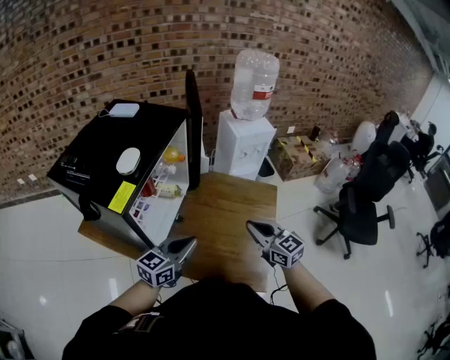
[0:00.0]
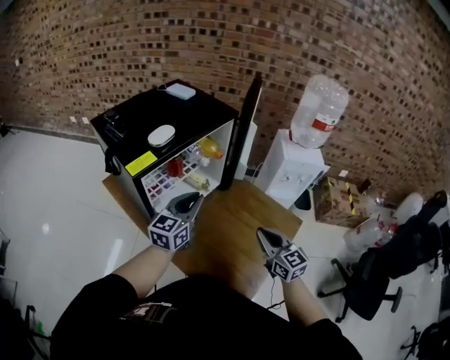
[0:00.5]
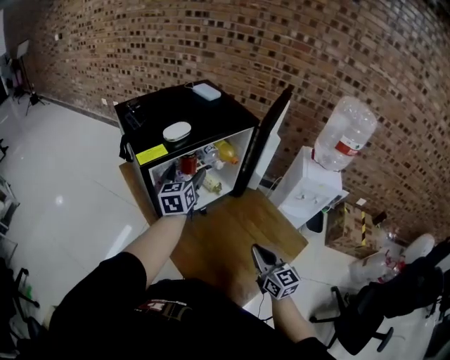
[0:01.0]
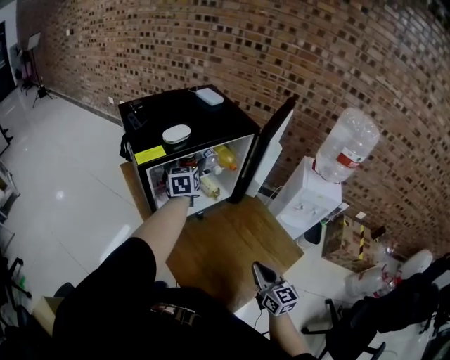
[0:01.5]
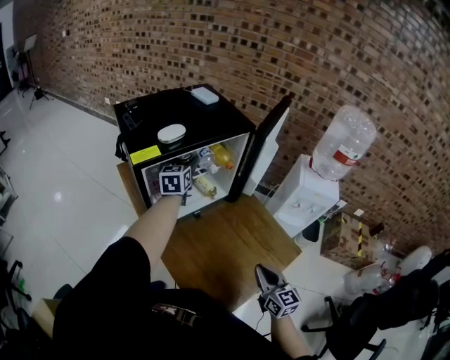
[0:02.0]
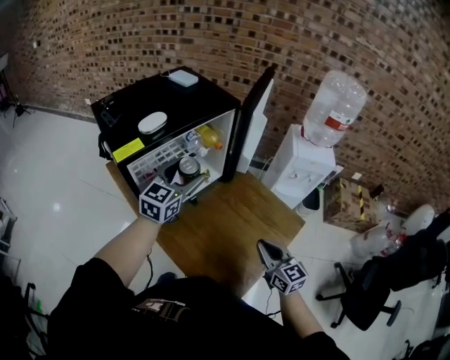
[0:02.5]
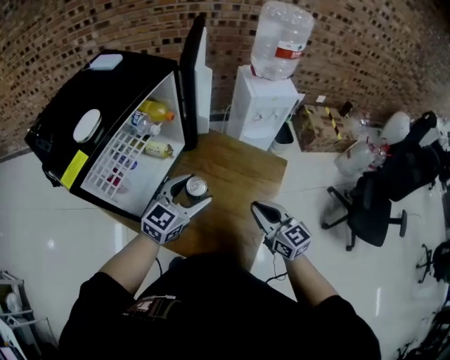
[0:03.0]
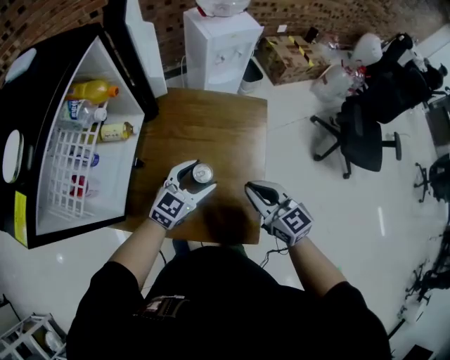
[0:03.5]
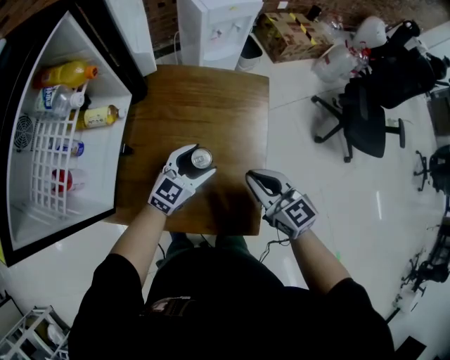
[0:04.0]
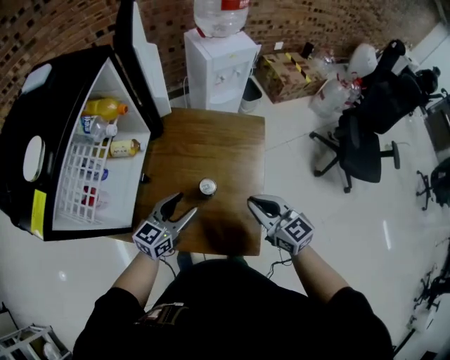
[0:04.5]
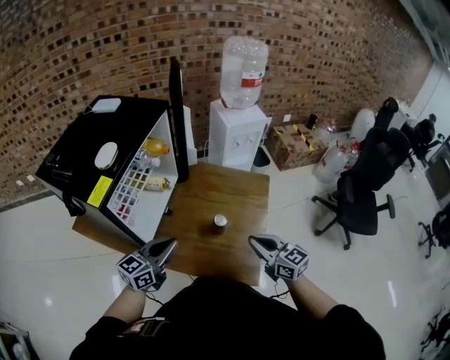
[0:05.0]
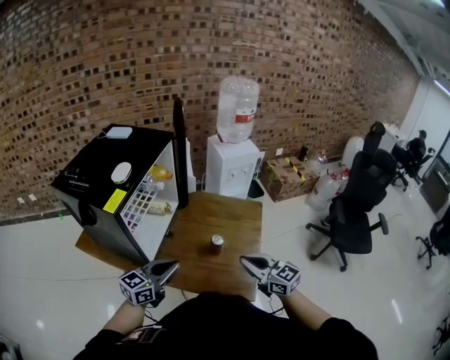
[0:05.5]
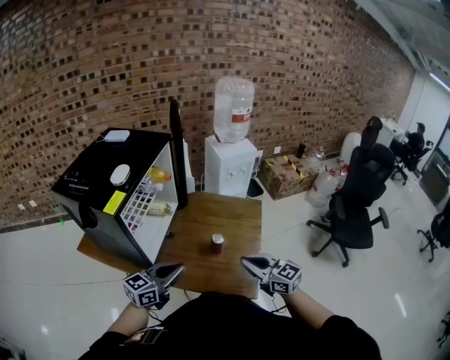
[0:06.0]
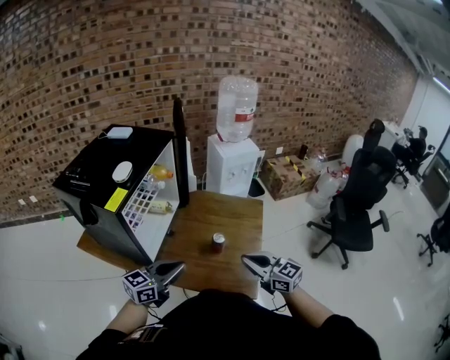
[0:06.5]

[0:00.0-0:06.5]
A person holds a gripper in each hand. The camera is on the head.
0:00.0 to 0:02.0: The right gripper moves some 15 cm; the left gripper ends up some 25 cm from where it was, turns by roughly 70 degrees, and opens its fingers.
0:02.0 to 0:04.5: The right gripper heads downward, covering about 5 cm, and rotates about 20 degrees. The left gripper moves up and down over approximately 35 cm, changing direction 2 times, and changes its angle by roughly 80 degrees.
0:04.5 to 0:06.5: Both grippers travel together upward, backward and to the left, about 20 cm. The left gripper closes up.

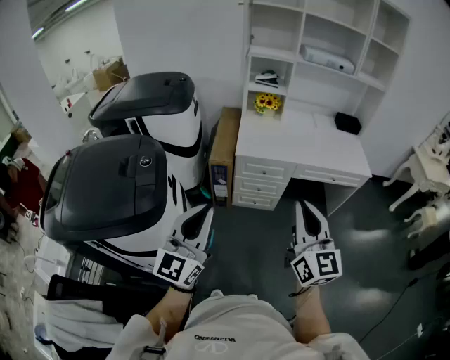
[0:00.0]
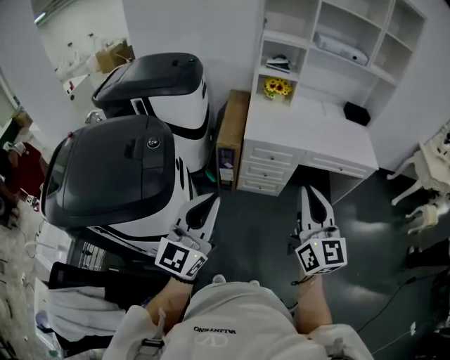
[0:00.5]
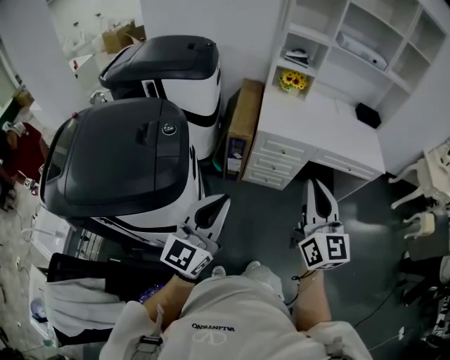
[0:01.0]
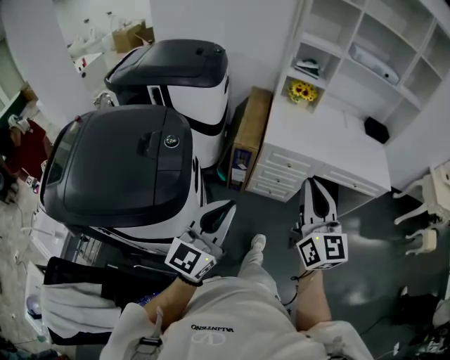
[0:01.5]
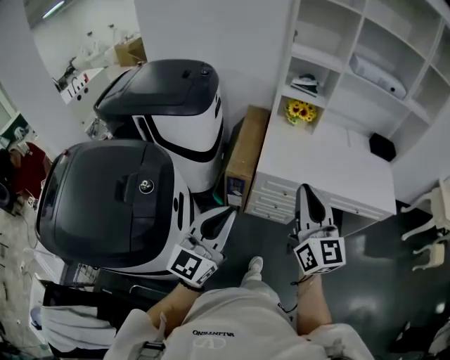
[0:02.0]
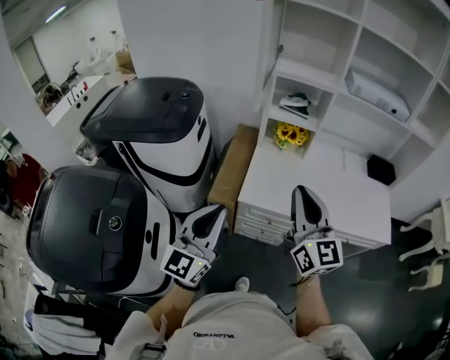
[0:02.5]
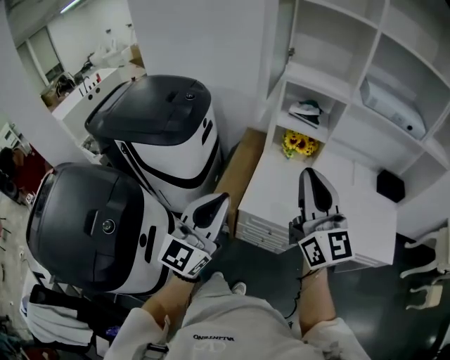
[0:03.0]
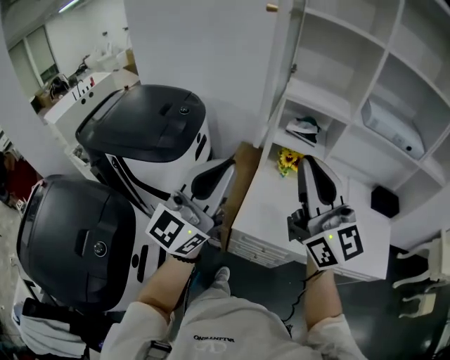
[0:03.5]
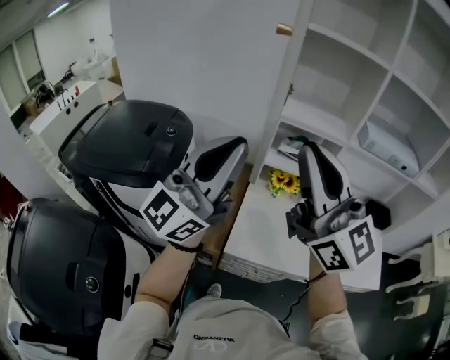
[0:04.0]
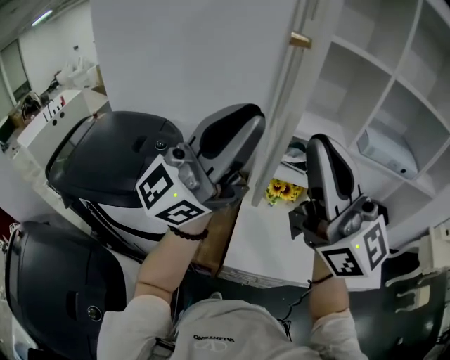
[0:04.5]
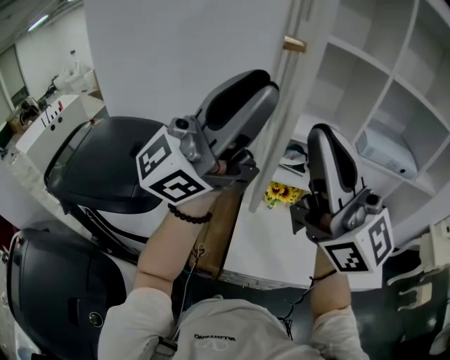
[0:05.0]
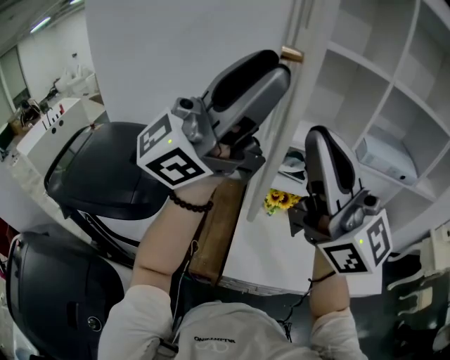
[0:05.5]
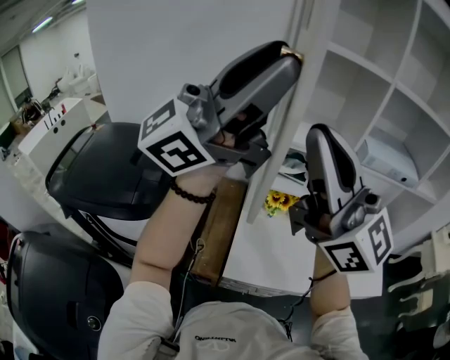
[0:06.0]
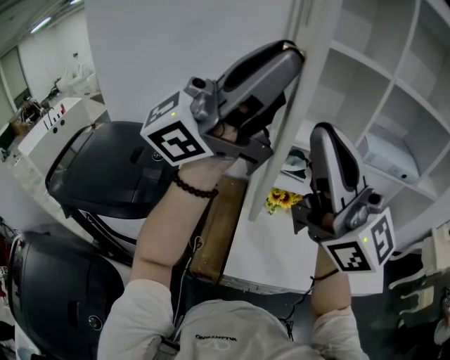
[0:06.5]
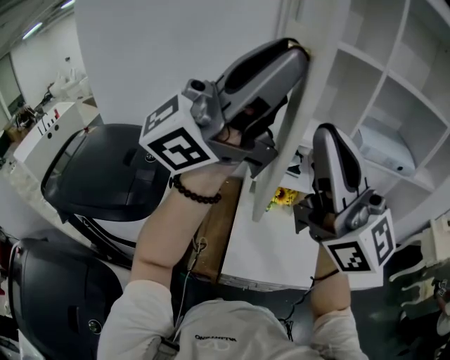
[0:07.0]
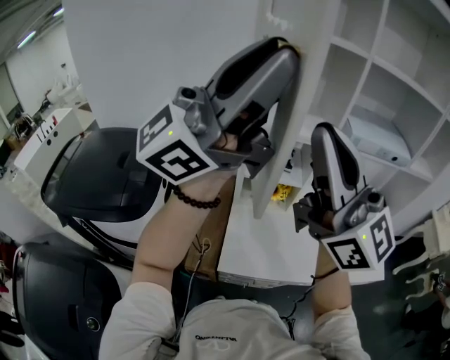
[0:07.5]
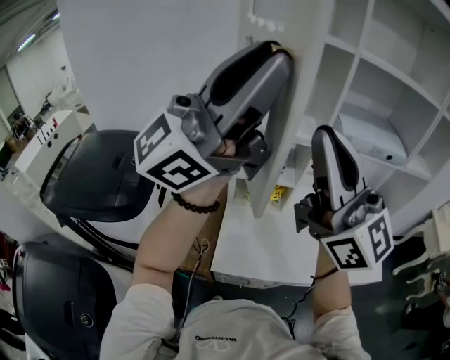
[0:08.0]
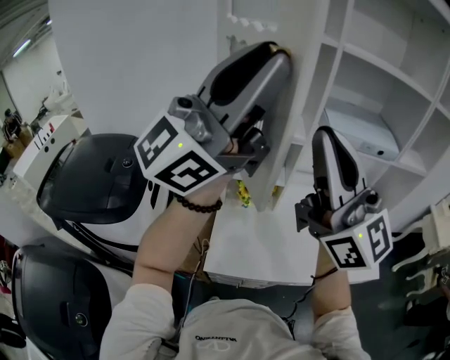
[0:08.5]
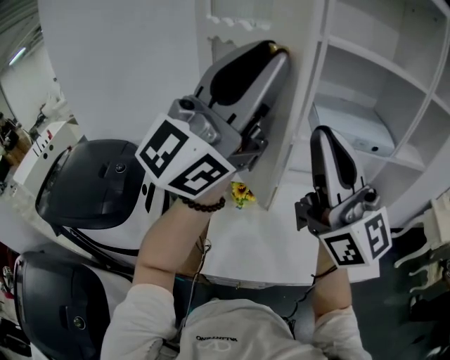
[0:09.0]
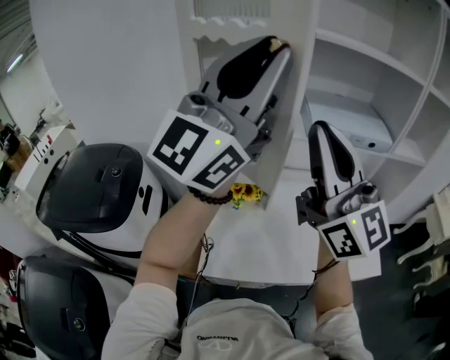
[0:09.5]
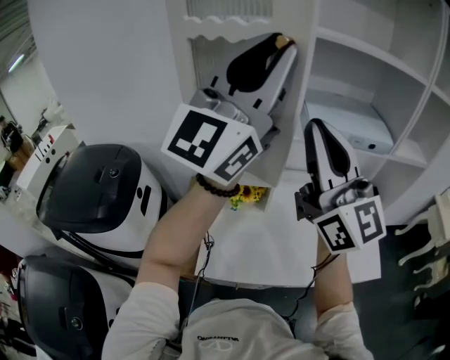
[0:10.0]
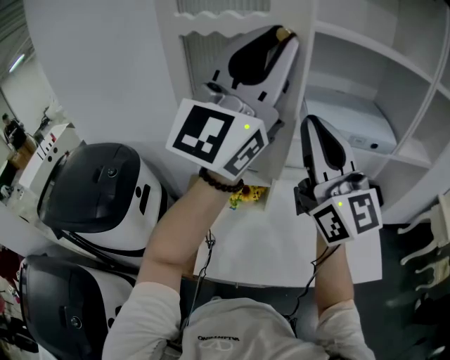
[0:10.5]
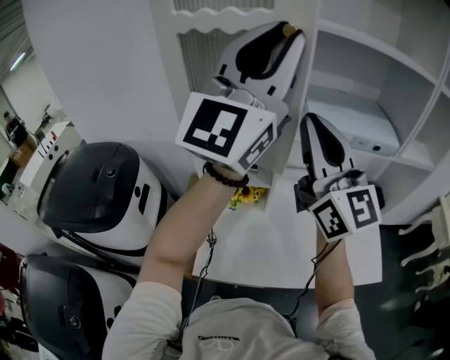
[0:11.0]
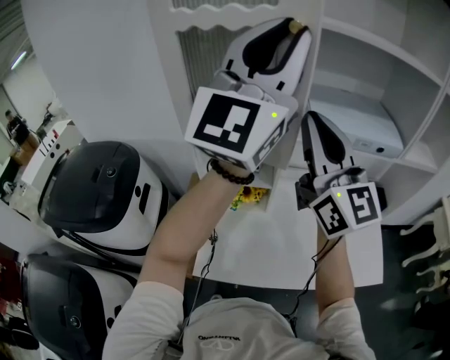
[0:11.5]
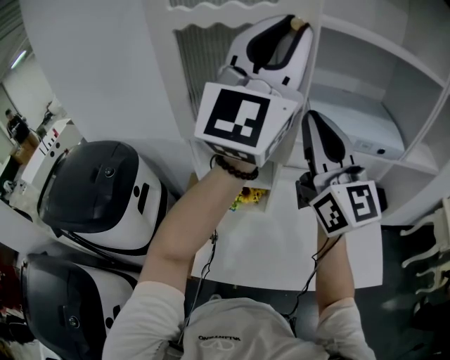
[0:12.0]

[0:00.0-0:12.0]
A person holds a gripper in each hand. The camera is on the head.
0:00.0 to 0:02.0: The grippers both shift forward by roughly 20 cm.
0:02.0 to 0:04.0: Both grippers move forward and upward, about 40 cm. The right gripper turns by about 30 degrees. Meanwhile the left gripper turns by about 30 degrees.
0:04.0 to 0:06.0: The right gripper goes about 5 cm upward; the left gripper is displaced upward by roughly 15 cm, rotates approximately 30 degrees, and opens.
0:06.0 to 0:08.0: The right gripper changes place by roughly 10 cm; the left gripper shifts by about 10 cm.
0:08.0 to 0:10.0: The grippers both shift to the right and forward by about 15 cm. The left gripper swivels some 30 degrees.
0:10.0 to 0:12.0: The two grippers go about 10 cm forward.

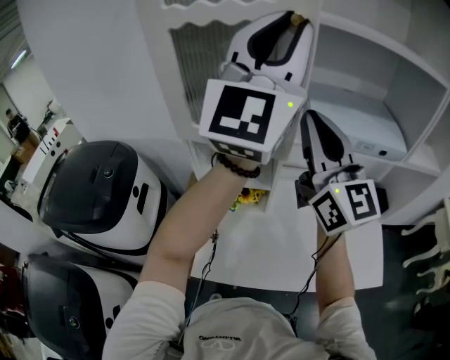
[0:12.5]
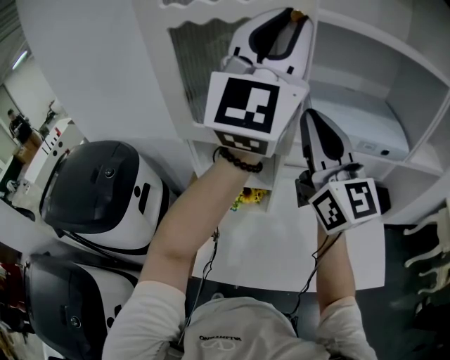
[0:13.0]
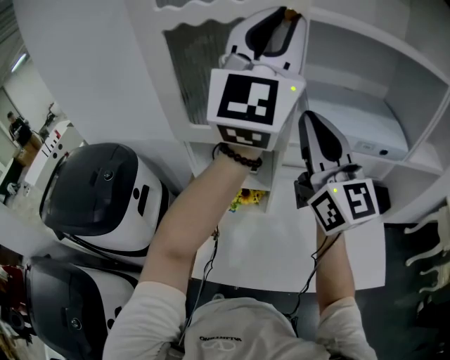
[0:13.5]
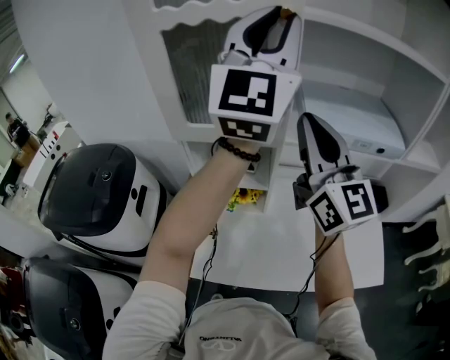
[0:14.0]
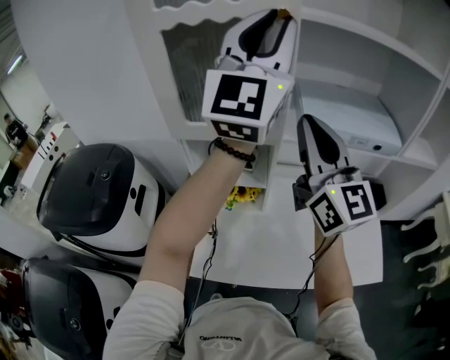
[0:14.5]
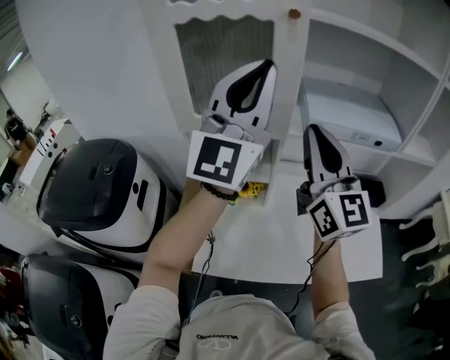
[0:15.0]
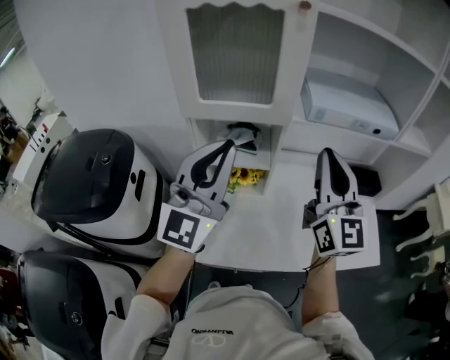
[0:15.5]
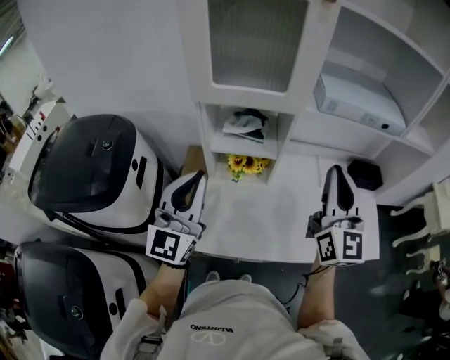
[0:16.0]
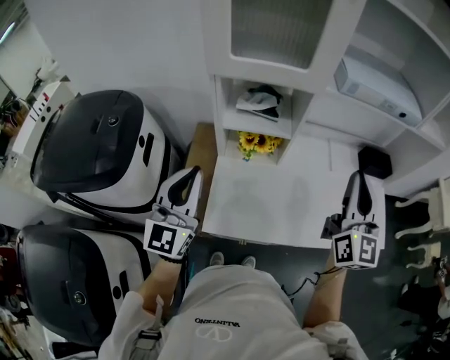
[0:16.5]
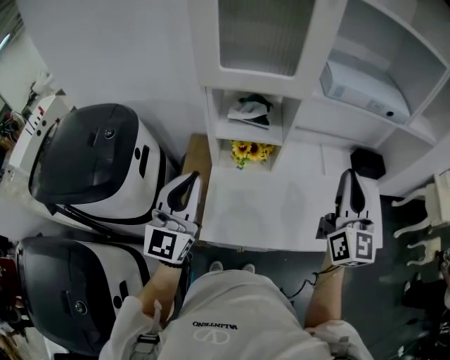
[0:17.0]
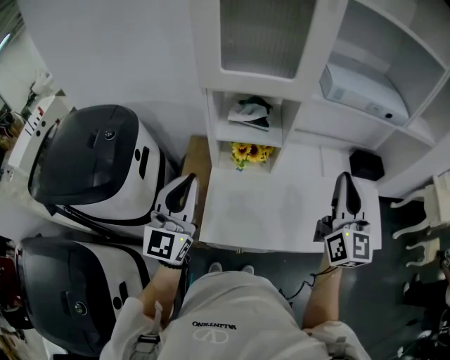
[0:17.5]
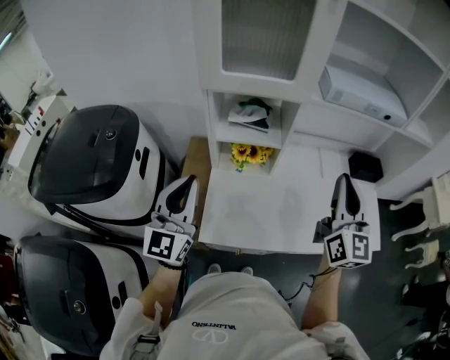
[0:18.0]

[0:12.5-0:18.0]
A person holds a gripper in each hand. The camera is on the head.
0:12.5 to 0:14.5: The grippers make only small movements.
0:14.5 to 0:16.0: The left gripper travels downward, backward and to the left by roughly 40 cm, and changes its angle by some 20 degrees, while the right gripper moves downward and backward, roughly 15 cm, and turns by approximately 20 degrees.
0:16.0 to 0:18.0: The left gripper changes place by roughly 5 cm; the right gripper ends up roughly 5 cm from where it was.

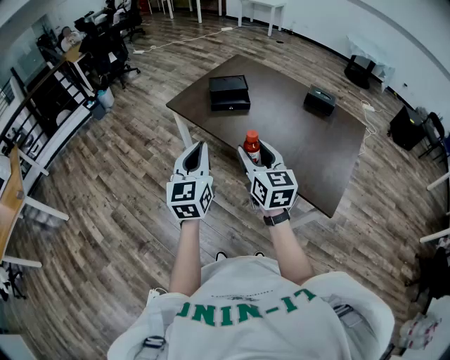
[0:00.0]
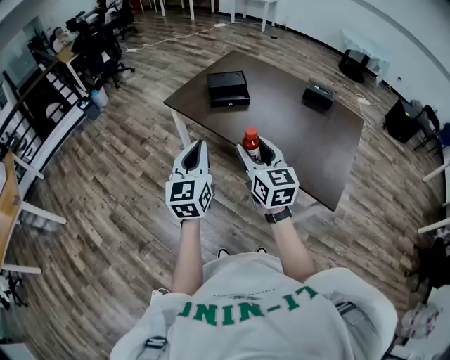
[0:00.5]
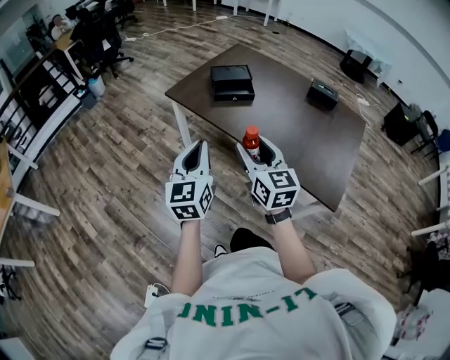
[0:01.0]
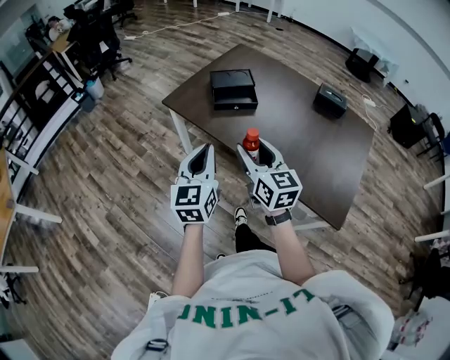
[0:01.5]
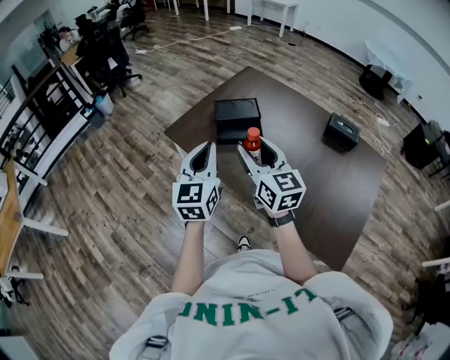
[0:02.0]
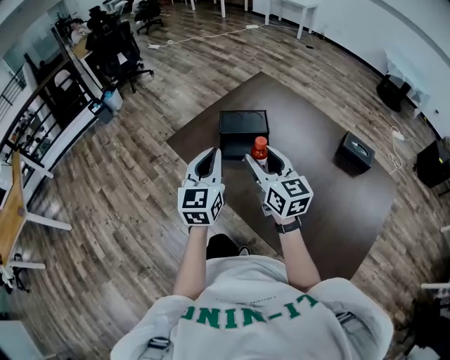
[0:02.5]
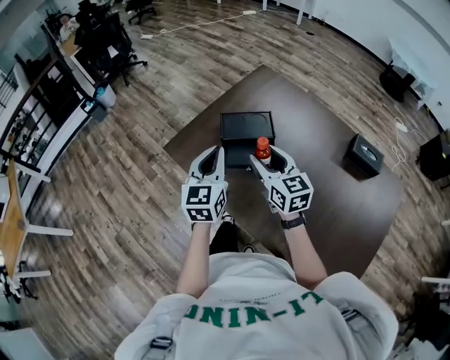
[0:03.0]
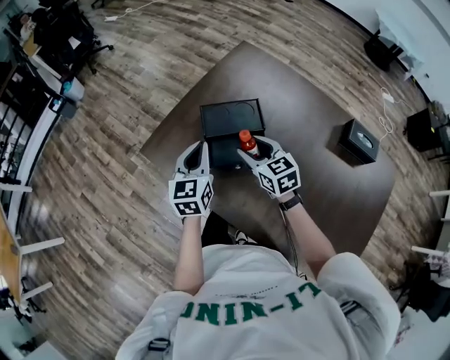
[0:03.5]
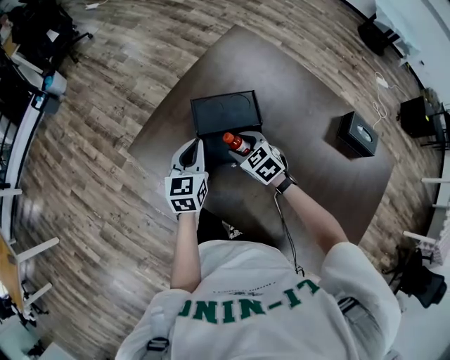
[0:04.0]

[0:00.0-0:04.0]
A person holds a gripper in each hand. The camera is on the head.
0:00.0 to 0:02.0: Both grippers travel together forward, approximately 30 cm.
0:02.0 to 0:04.0: The grippers both shift forward and downward by about 50 cm. The right gripper points its fingers about 50 degrees further downward, while the left gripper swivels about 20 degrees.
